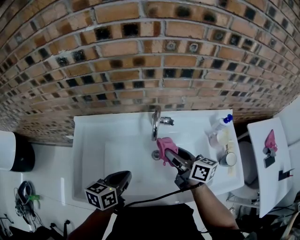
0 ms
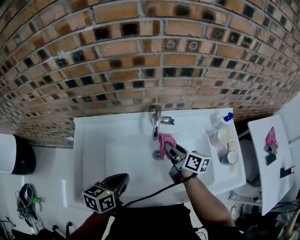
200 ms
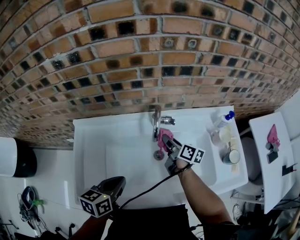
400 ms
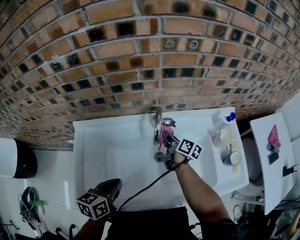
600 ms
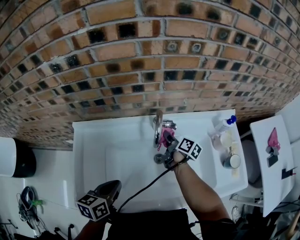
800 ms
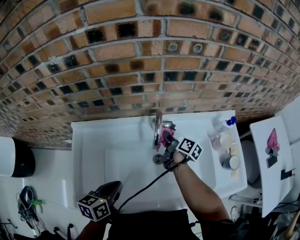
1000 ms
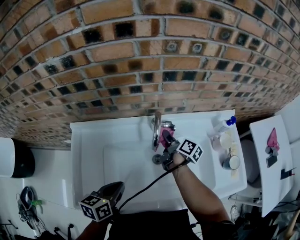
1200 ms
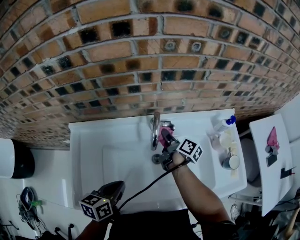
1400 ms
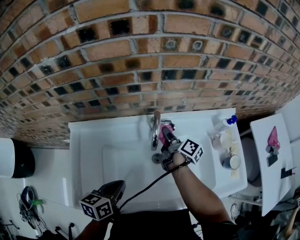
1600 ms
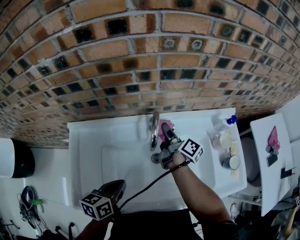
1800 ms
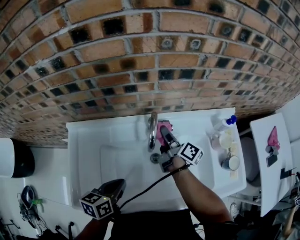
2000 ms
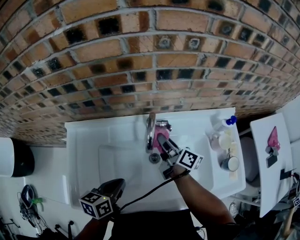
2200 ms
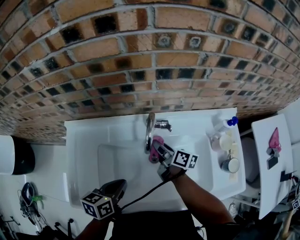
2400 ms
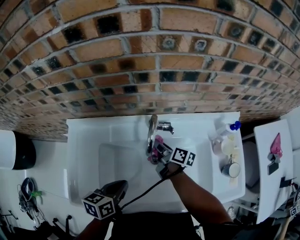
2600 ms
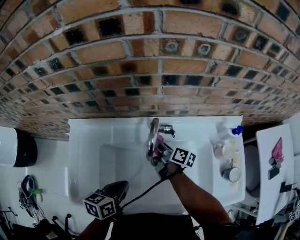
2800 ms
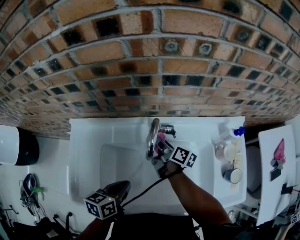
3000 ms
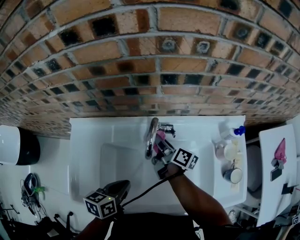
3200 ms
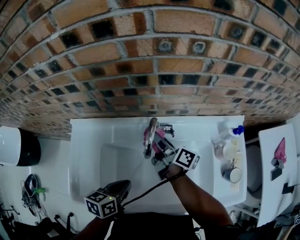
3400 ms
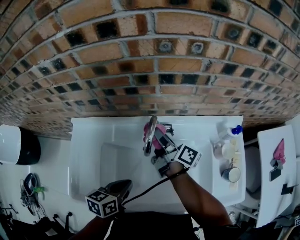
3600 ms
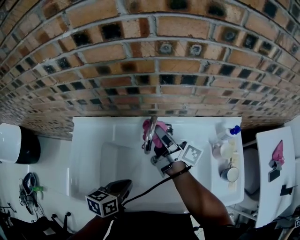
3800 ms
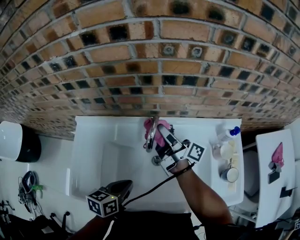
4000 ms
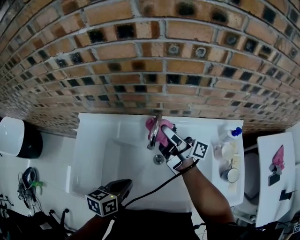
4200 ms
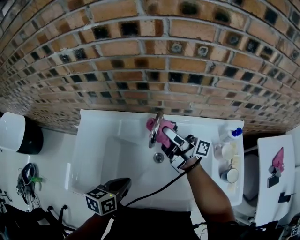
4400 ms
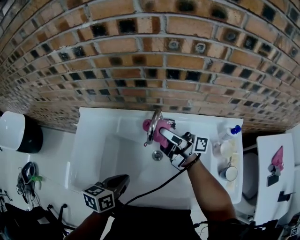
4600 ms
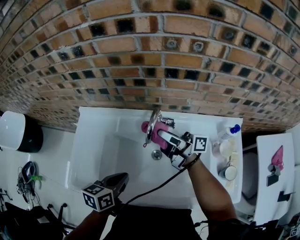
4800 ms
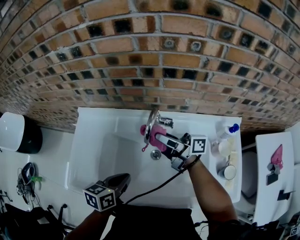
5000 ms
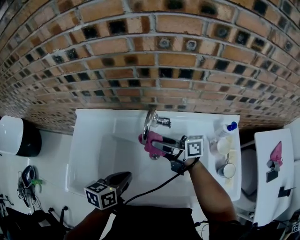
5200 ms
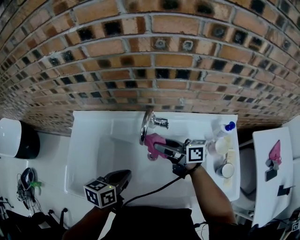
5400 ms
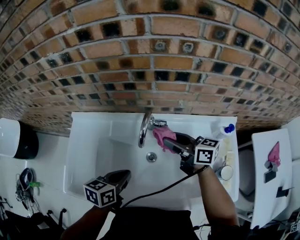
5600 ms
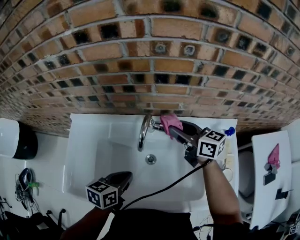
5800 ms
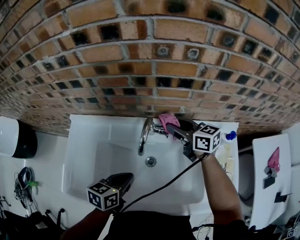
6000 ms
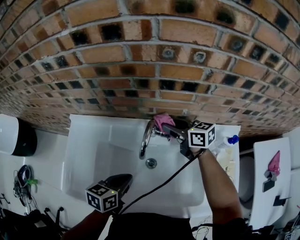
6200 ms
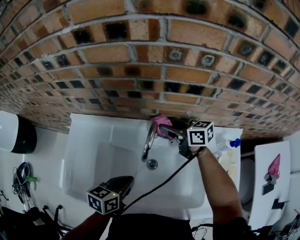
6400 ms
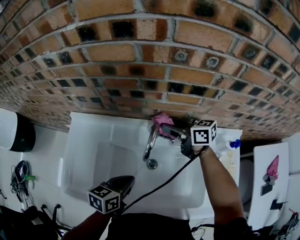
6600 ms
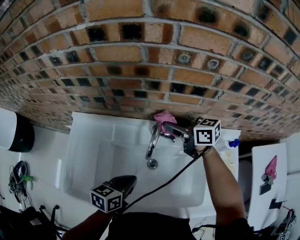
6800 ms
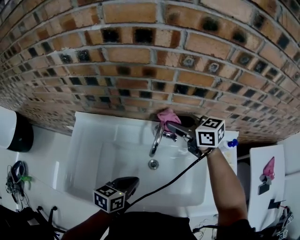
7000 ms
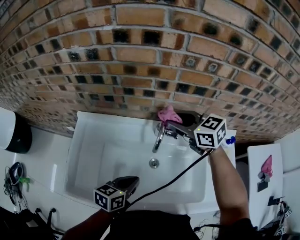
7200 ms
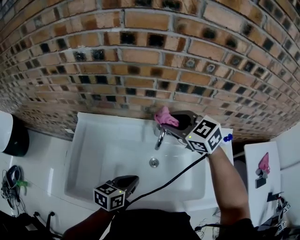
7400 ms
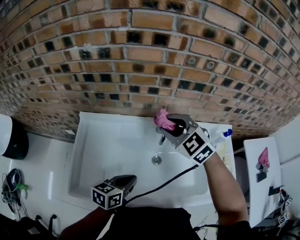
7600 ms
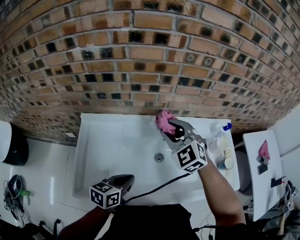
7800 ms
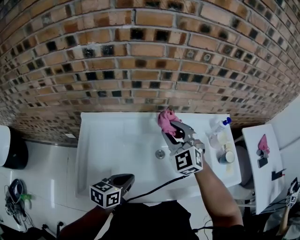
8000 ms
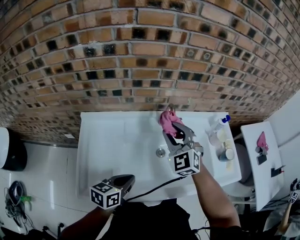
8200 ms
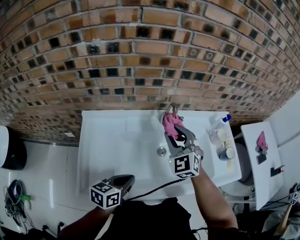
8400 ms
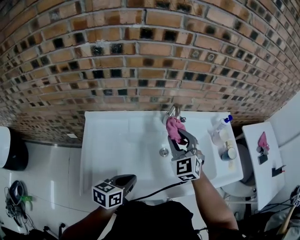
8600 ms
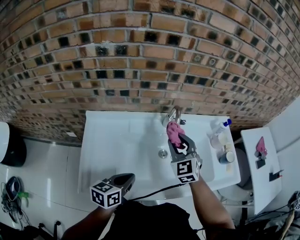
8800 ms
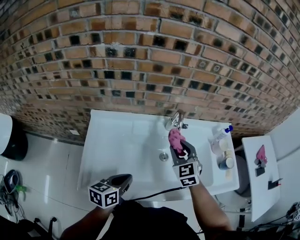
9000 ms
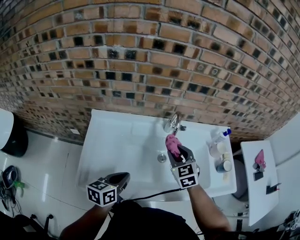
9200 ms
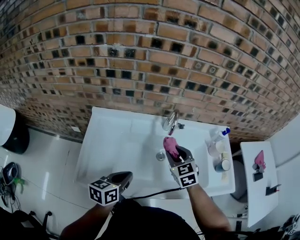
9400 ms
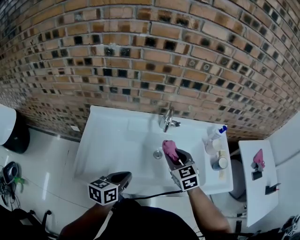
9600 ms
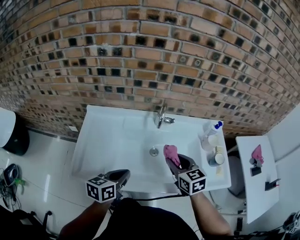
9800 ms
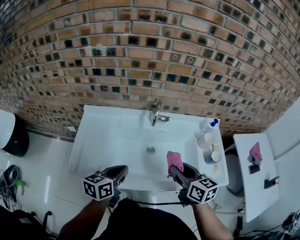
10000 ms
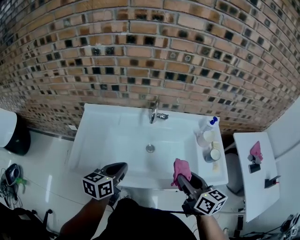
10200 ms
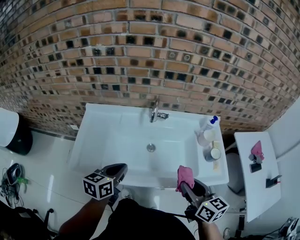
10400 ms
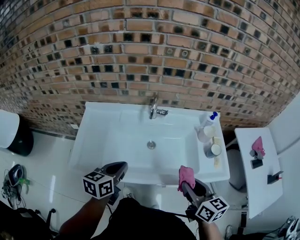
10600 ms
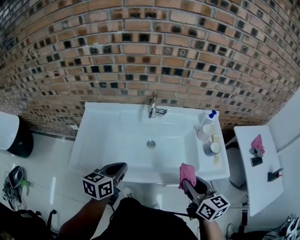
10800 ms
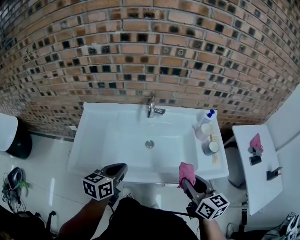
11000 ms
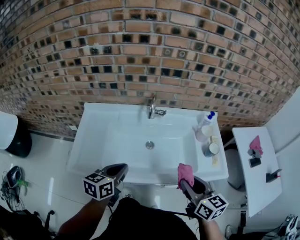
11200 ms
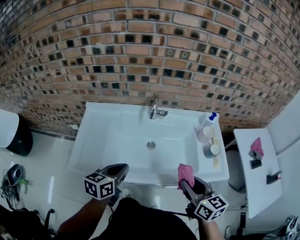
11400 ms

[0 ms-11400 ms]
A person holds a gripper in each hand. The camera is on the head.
0 ms to 1400 ms: The right gripper shifts about 15 cm forward and downward, and turns by about 40 degrees.
1400 ms to 2800 ms: The right gripper reaches some 5 cm upward, then returns.
2800 ms to 4200 ms: The right gripper shifts some 20 cm upward, and tilts its fingers roughly 40 degrees upward.
4200 ms to 5600 ms: The right gripper shifts by roughly 5 cm, and angles its fingers downward, by approximately 30 degrees.
5600 ms to 7200 ms: The right gripper moves upward and forward, roughly 10 cm, and swivels about 40 degrees.
7200 ms to 8600 ms: The left gripper changes place by about 15 cm; the right gripper changes place by approximately 15 cm, and changes its angle by some 60 degrees.
8600 ms to 10000 ms: The left gripper travels to the right and upward by approximately 10 cm; the right gripper is displaced backward and to the right by about 20 cm, and twists about 60 degrees clockwise, seen from behind.
10000 ms to 11400 ms: The right gripper moves backward and to the right, some 10 cm.

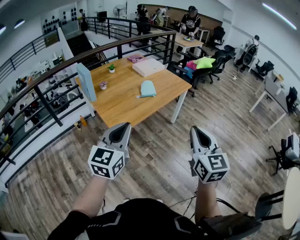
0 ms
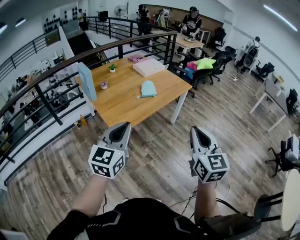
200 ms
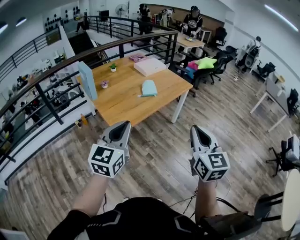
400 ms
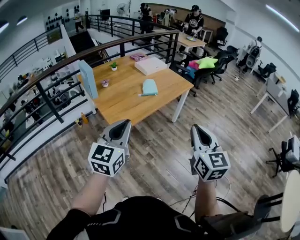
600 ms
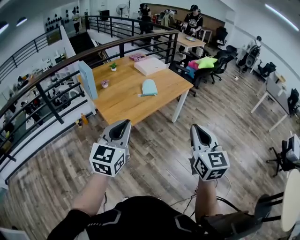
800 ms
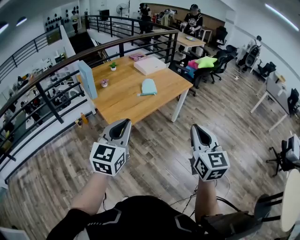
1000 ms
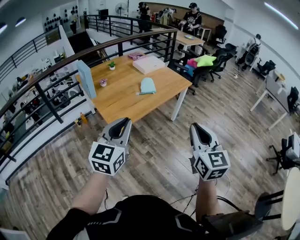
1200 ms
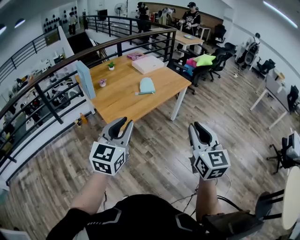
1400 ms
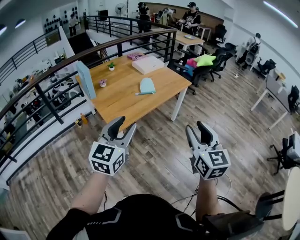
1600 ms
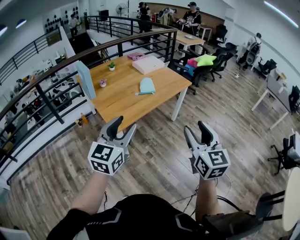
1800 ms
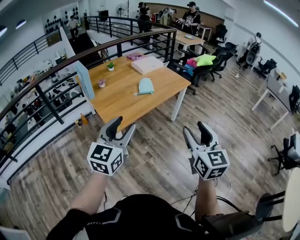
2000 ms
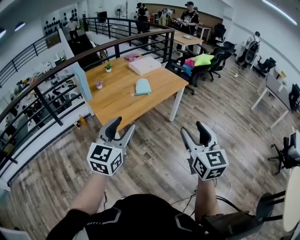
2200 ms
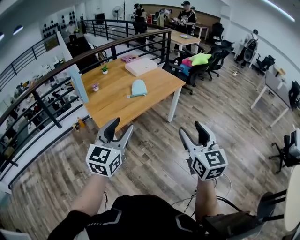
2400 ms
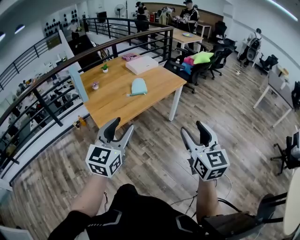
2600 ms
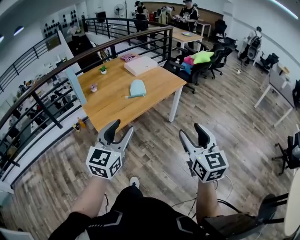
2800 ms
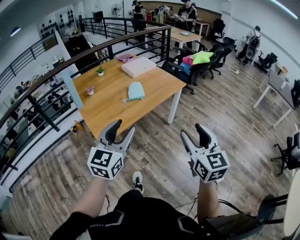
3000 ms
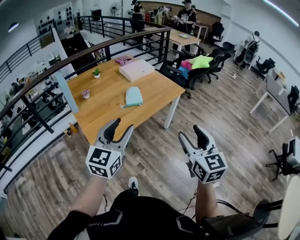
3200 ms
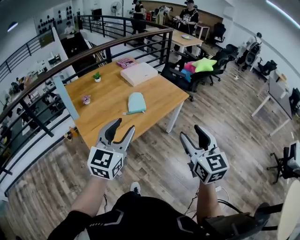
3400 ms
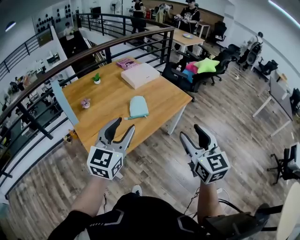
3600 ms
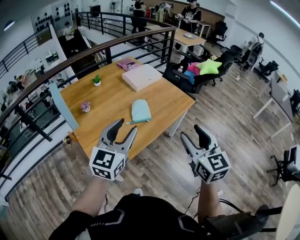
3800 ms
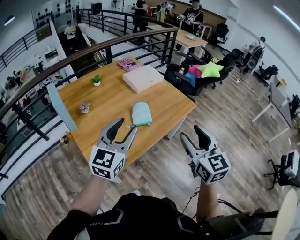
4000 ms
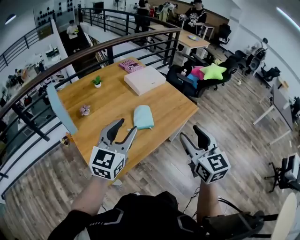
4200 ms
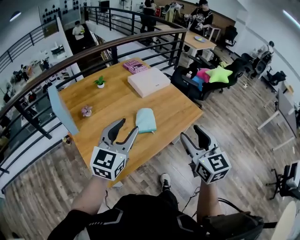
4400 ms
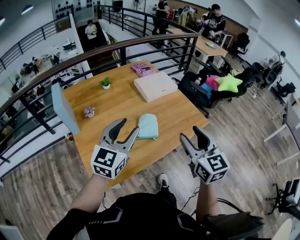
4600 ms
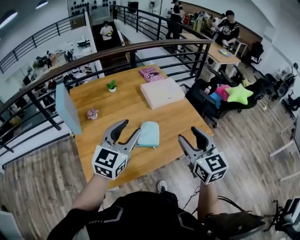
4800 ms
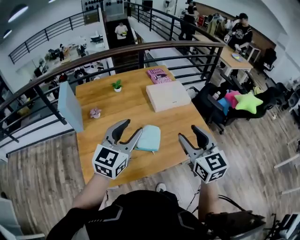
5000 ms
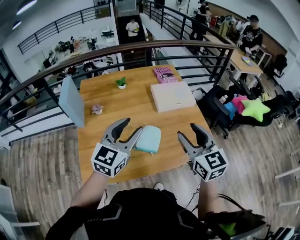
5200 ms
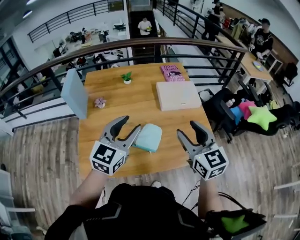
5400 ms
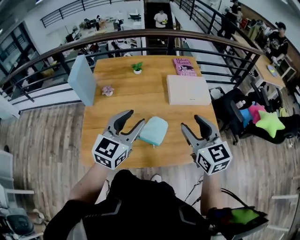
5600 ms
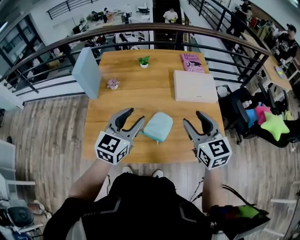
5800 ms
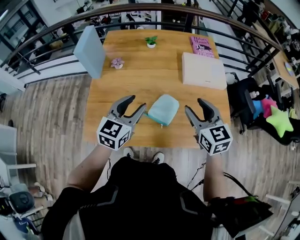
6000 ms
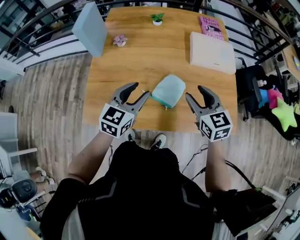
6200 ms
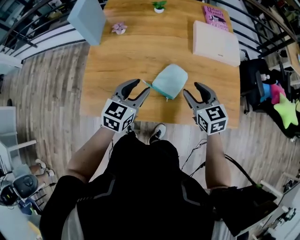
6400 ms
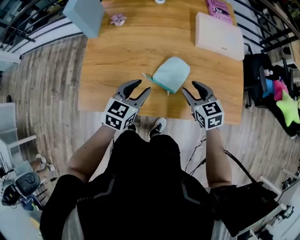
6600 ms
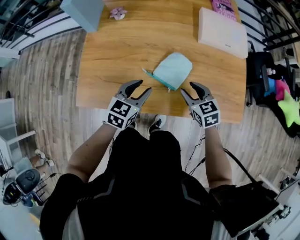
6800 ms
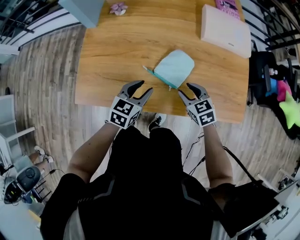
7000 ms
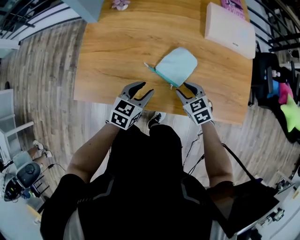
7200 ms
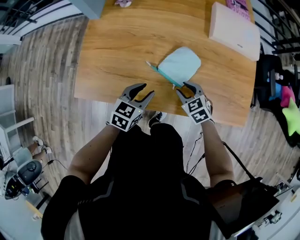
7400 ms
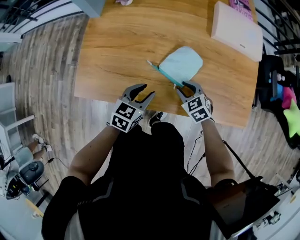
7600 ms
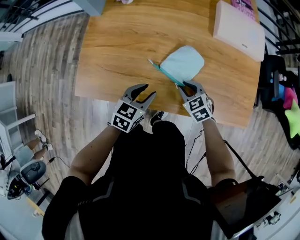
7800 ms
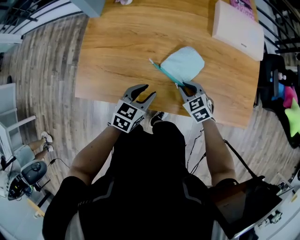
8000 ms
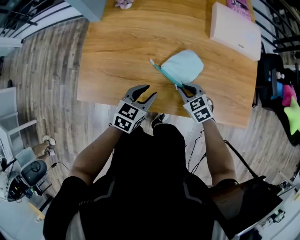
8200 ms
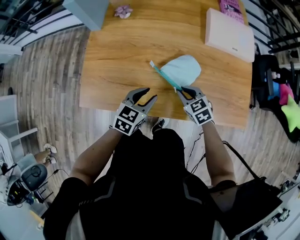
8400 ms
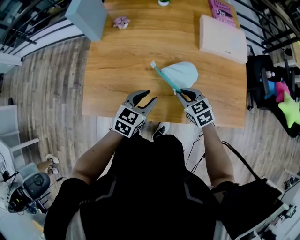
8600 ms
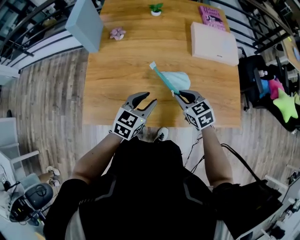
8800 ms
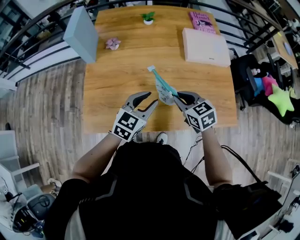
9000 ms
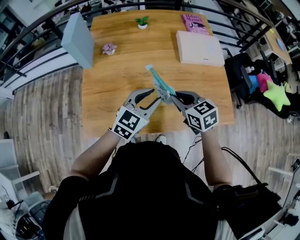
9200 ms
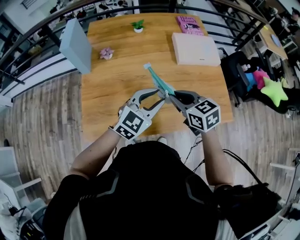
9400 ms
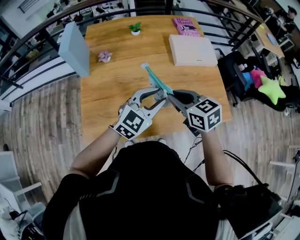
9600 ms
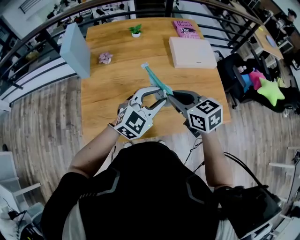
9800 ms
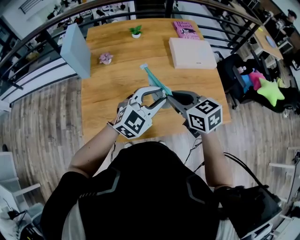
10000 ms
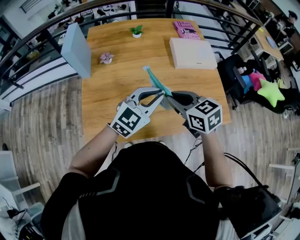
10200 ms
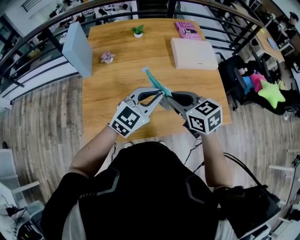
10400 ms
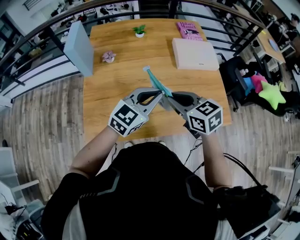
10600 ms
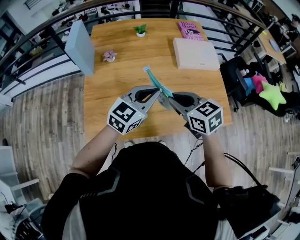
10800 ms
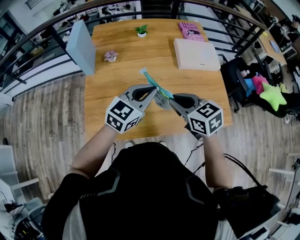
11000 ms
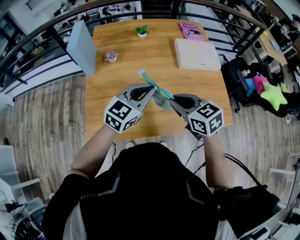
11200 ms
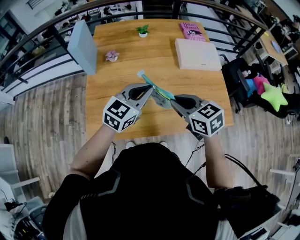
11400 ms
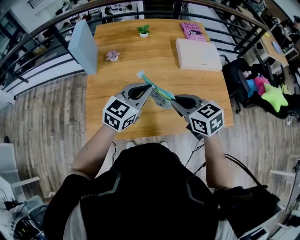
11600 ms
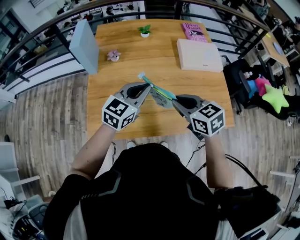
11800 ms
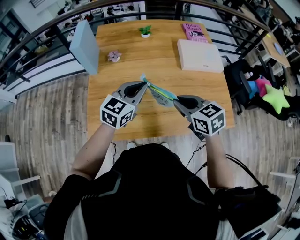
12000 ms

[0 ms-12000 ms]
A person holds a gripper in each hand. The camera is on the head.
0 ms to 1600 ms: The right gripper opens its fingers. The left gripper opens up.
1600 ms to 3000 ms: Both grippers travel together forward and to the right, roughly 15 cm.
3000 ms to 4400 ms: Both grippers move forward, approximately 35 cm.
4400 ms to 6000 ms: The left gripper changes place by approximately 15 cm, and turns by some 40 degrees, while the right gripper shifts by about 30 cm, and rotates approximately 40 degrees.
6000 ms to 7600 ms: The two grippers go roughly 25 cm downward. The left gripper swivels about 30 degrees; the right gripper points its fingers some 30 degrees further downward.
7600 ms to 9000 ms: The two grippers go some 15 cm upward. The right gripper turns by roughly 20 degrees, while the left gripper rotates about 20 degrees.
9000 ms to 10400 ms: Both grippers travel together upward, approximately 10 cm. The left gripper turns by roughly 20 degrees, and closes up.
10400 ms to 12000 ms: The left gripper is displaced to the left by about 5 cm.
